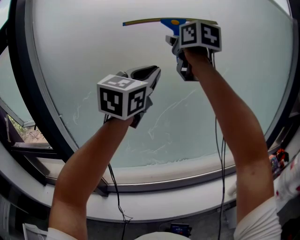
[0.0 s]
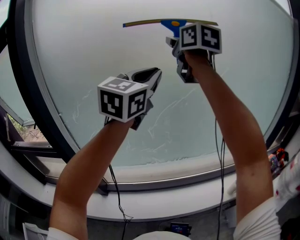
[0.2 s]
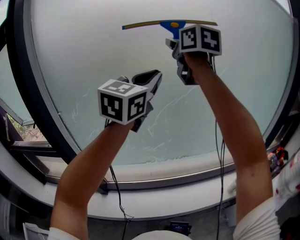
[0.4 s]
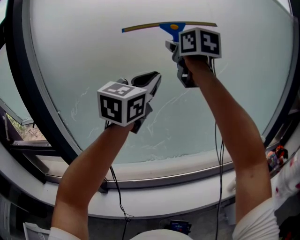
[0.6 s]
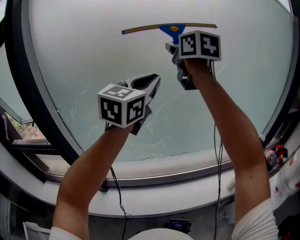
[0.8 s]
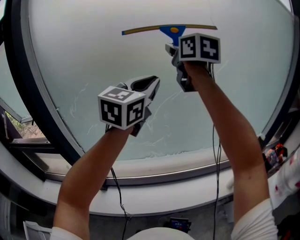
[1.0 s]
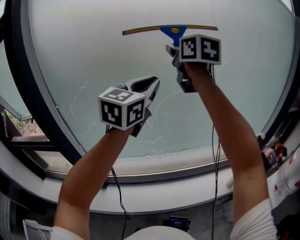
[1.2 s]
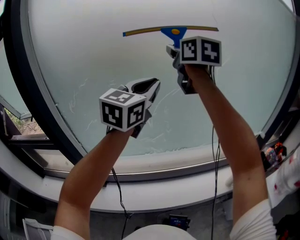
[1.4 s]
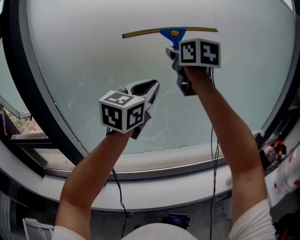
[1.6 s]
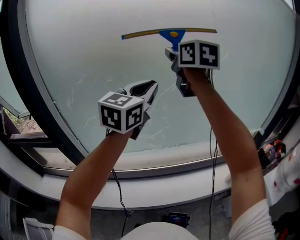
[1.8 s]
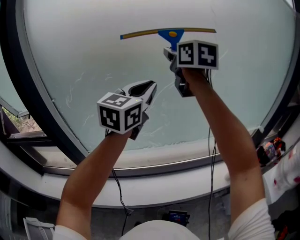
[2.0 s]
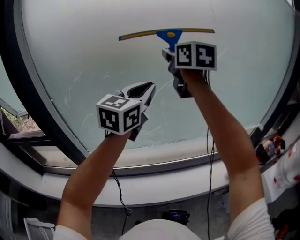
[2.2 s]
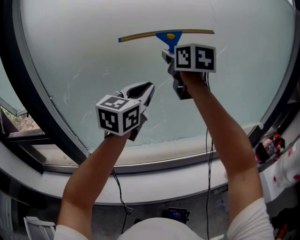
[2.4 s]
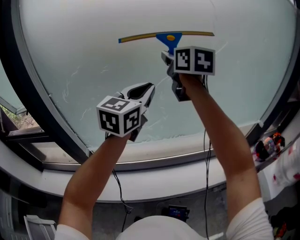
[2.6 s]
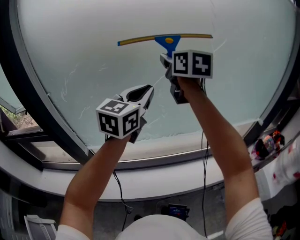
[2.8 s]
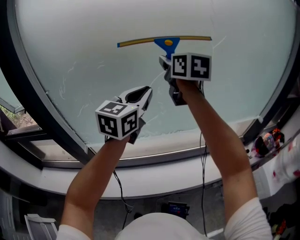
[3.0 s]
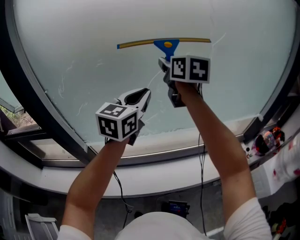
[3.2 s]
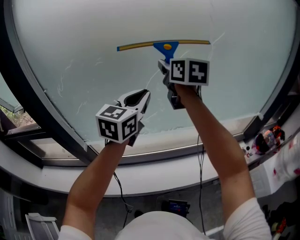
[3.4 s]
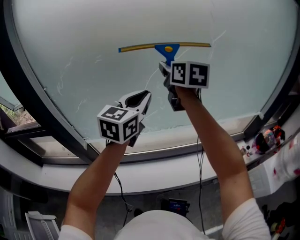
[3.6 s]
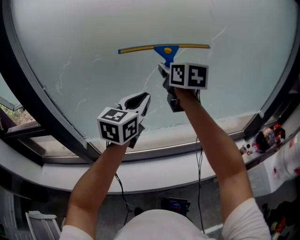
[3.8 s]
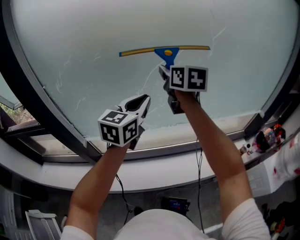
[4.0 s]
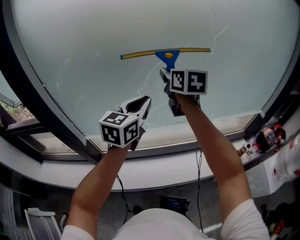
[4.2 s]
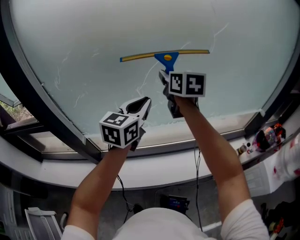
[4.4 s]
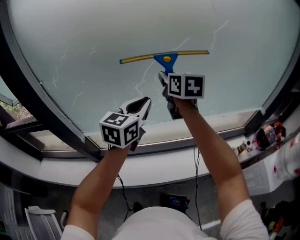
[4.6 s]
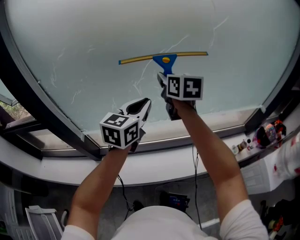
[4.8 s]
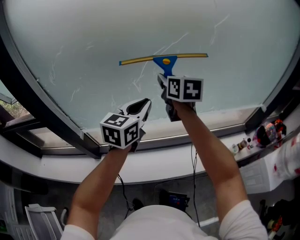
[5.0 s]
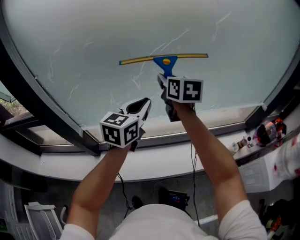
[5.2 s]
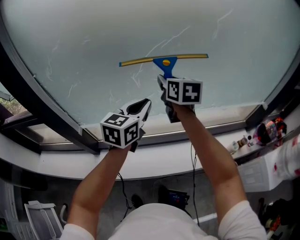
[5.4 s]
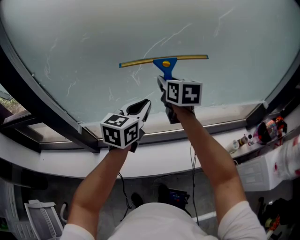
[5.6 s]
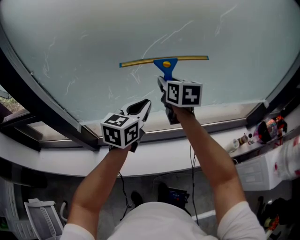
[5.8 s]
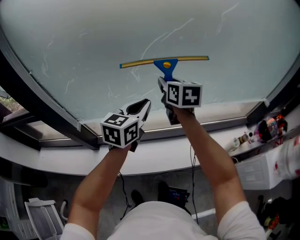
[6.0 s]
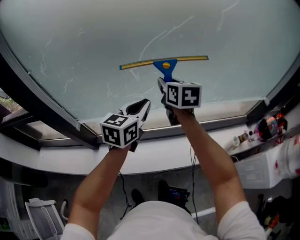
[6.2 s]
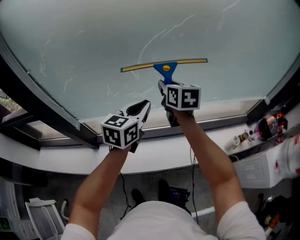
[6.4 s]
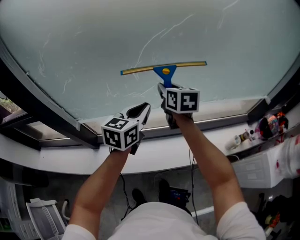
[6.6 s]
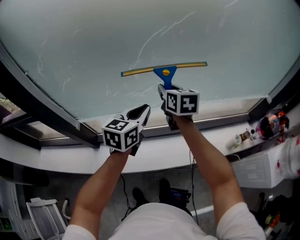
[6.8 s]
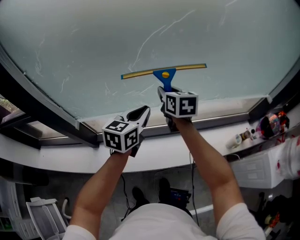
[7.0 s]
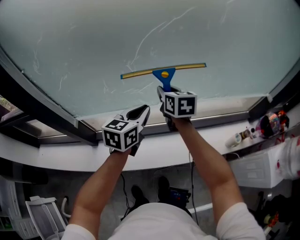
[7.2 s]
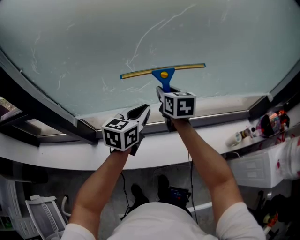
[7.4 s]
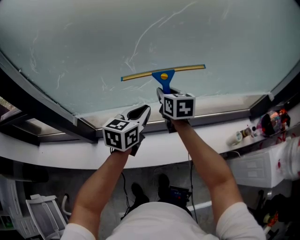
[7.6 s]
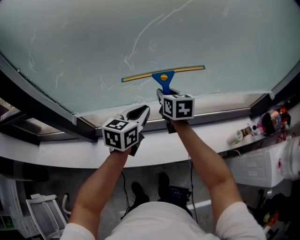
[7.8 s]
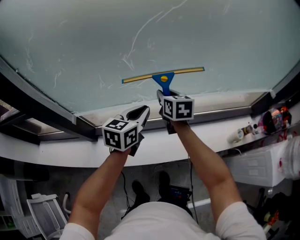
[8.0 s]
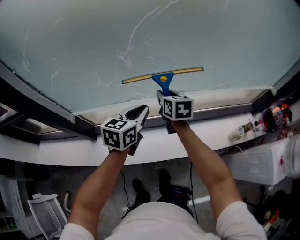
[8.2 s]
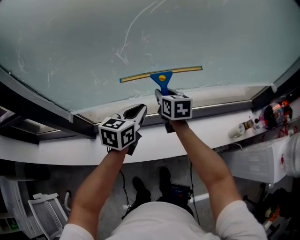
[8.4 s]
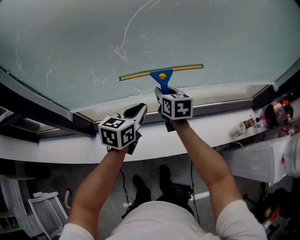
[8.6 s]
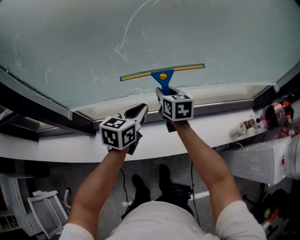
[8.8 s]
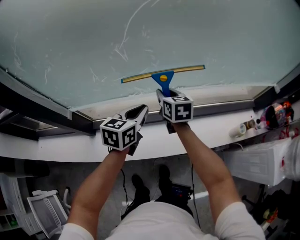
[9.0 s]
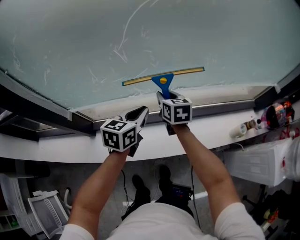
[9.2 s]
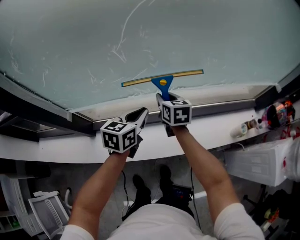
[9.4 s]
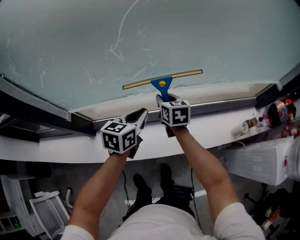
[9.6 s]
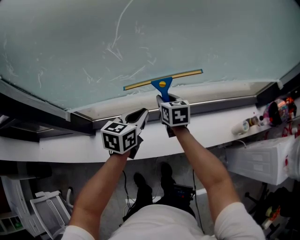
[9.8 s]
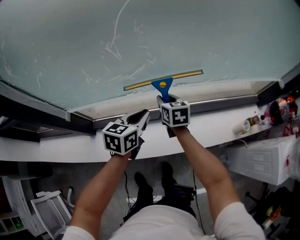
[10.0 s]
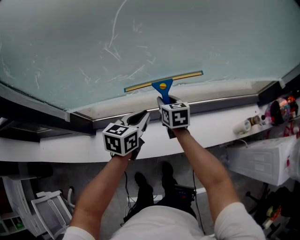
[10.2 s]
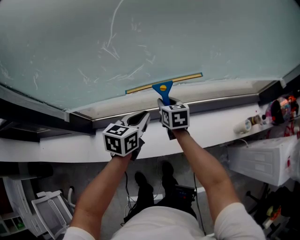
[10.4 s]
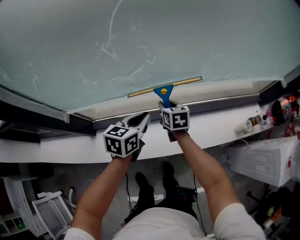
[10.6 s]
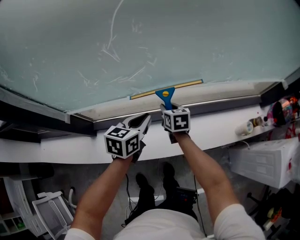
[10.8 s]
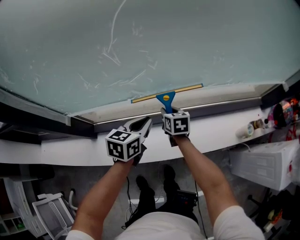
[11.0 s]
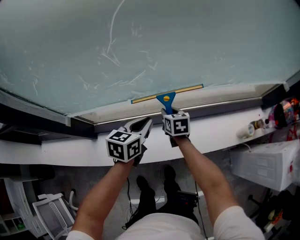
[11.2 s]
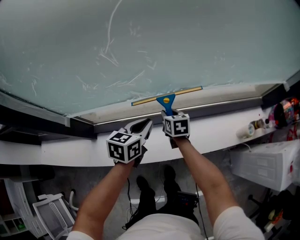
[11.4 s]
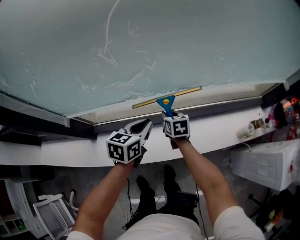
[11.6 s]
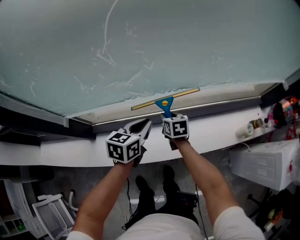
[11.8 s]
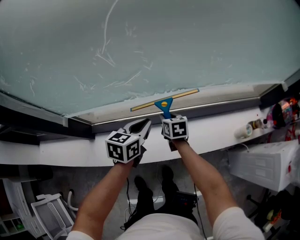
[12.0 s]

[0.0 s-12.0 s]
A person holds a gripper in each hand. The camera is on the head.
0.0 to 1.6 s: Both grippers move downward, some 10 cm.
1.6 to 3.0 s: Both grippers travel together downward, about 10 cm.
3.0 to 4.4 s: The grippers both shift downward by about 10 cm.
4.4 to 6.0 s: Both grippers travel together downward, about 10 cm.
6.0 to 7.6 s: Both grippers move downward, some 10 cm.
7.6 to 9.0 s: The two grippers go approximately 10 cm downward.
9.0 to 10.4 s: The left gripper is displaced downward by some 5 cm. Meanwhile the right gripper heads downward, covering some 10 cm.
10.4 to 12.0 s: The right gripper moves downward, approximately 10 cm.

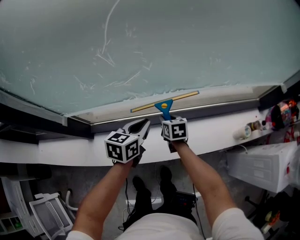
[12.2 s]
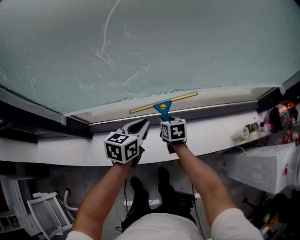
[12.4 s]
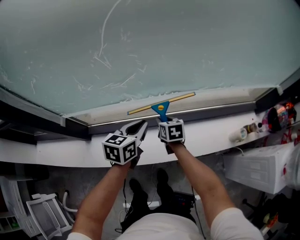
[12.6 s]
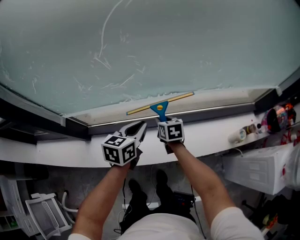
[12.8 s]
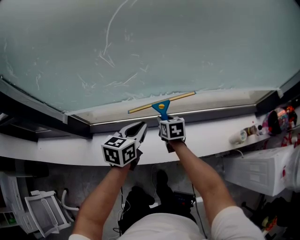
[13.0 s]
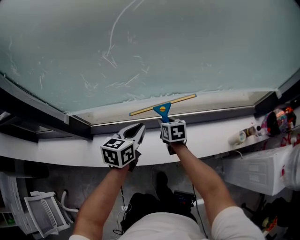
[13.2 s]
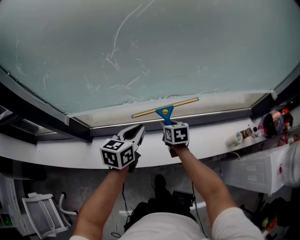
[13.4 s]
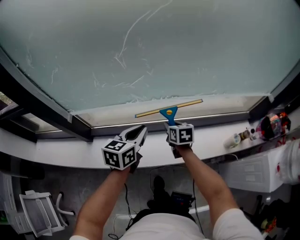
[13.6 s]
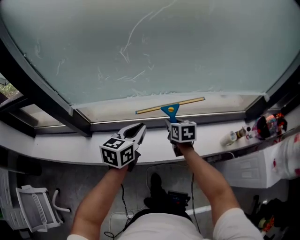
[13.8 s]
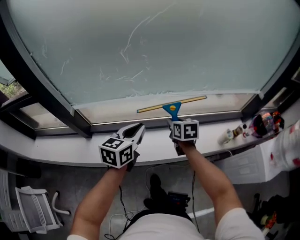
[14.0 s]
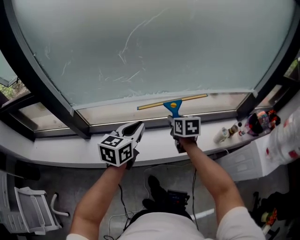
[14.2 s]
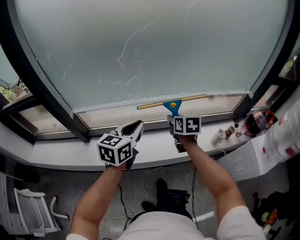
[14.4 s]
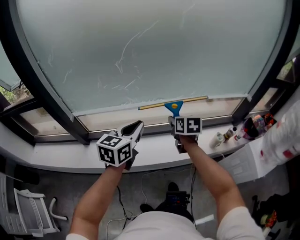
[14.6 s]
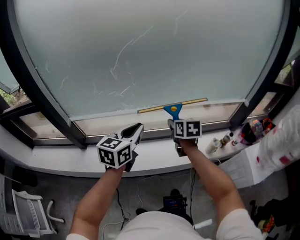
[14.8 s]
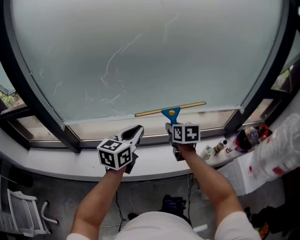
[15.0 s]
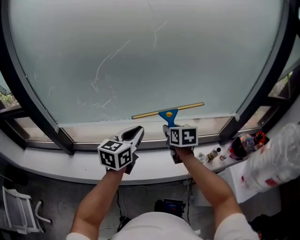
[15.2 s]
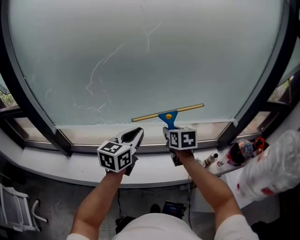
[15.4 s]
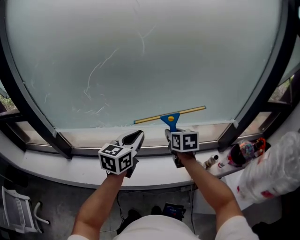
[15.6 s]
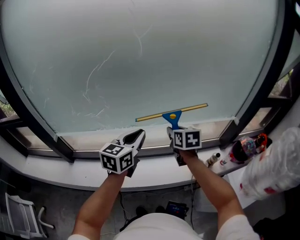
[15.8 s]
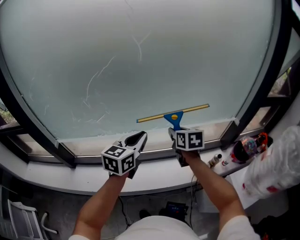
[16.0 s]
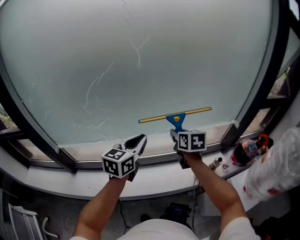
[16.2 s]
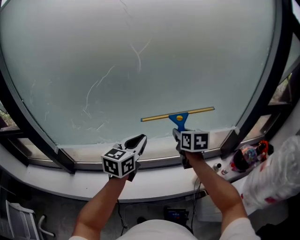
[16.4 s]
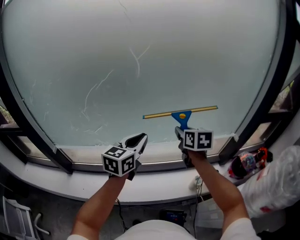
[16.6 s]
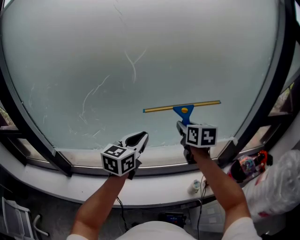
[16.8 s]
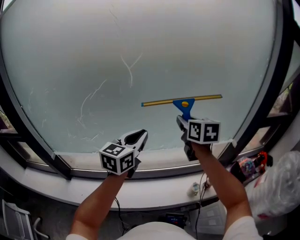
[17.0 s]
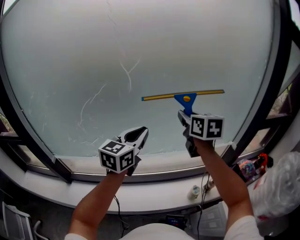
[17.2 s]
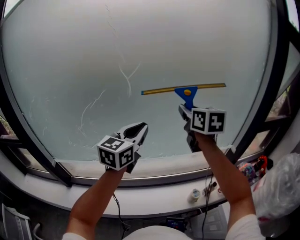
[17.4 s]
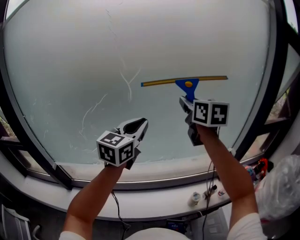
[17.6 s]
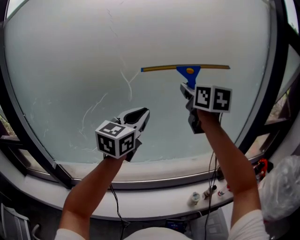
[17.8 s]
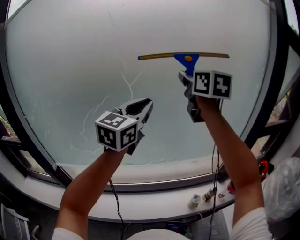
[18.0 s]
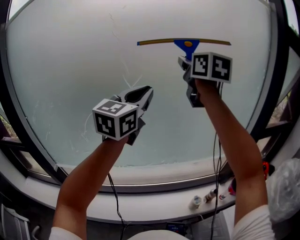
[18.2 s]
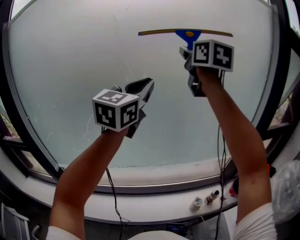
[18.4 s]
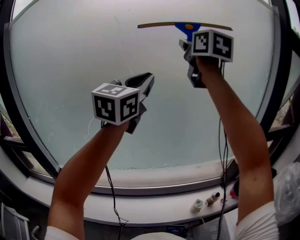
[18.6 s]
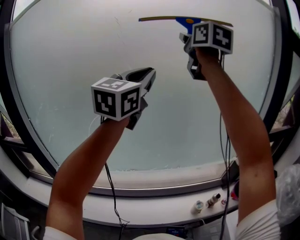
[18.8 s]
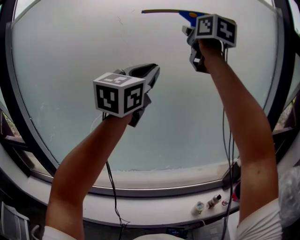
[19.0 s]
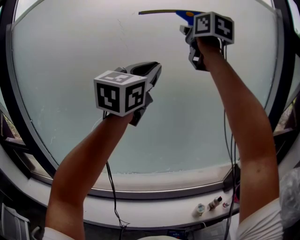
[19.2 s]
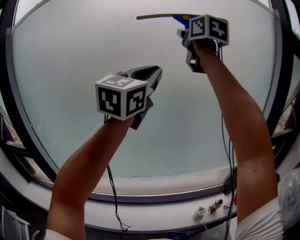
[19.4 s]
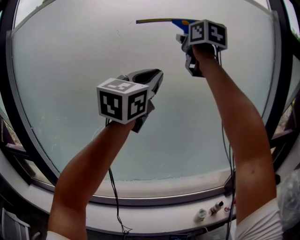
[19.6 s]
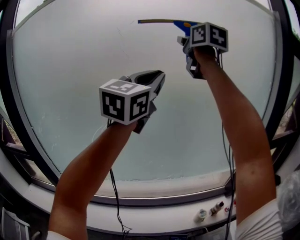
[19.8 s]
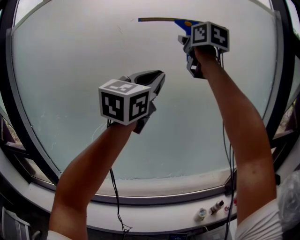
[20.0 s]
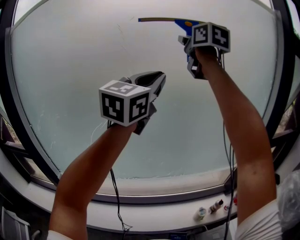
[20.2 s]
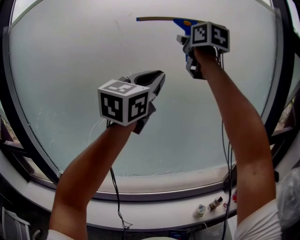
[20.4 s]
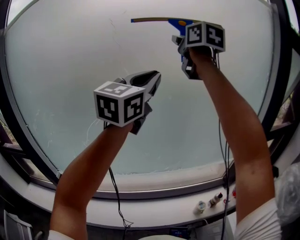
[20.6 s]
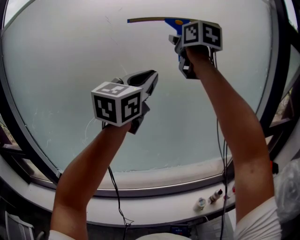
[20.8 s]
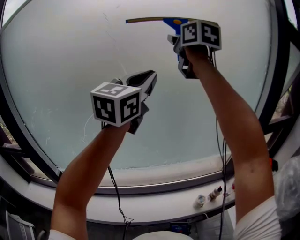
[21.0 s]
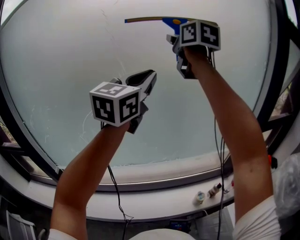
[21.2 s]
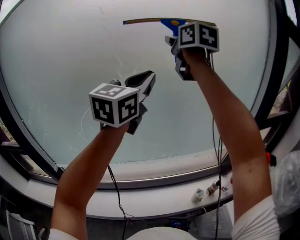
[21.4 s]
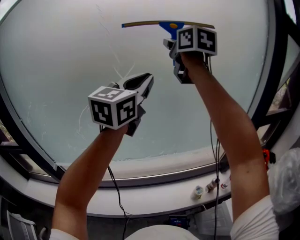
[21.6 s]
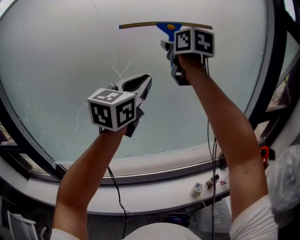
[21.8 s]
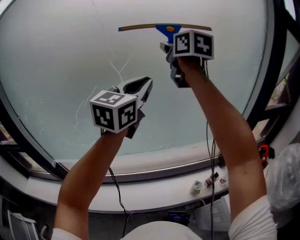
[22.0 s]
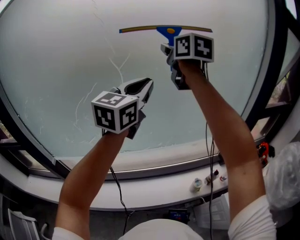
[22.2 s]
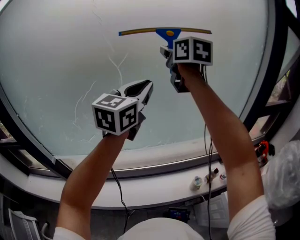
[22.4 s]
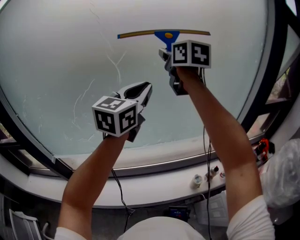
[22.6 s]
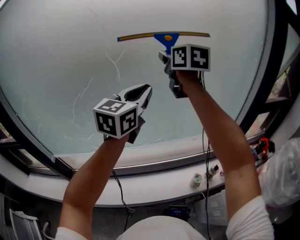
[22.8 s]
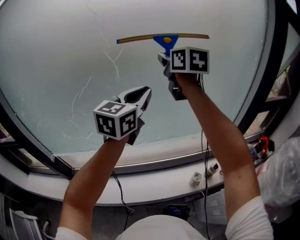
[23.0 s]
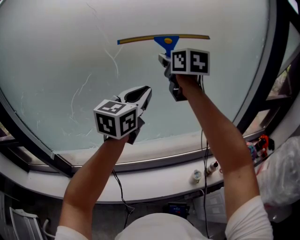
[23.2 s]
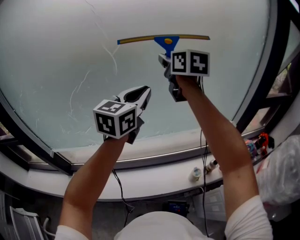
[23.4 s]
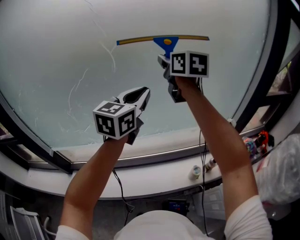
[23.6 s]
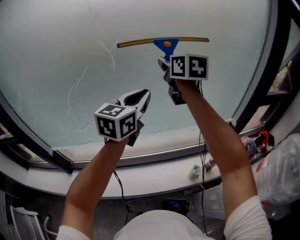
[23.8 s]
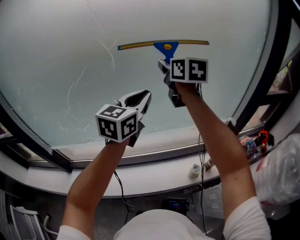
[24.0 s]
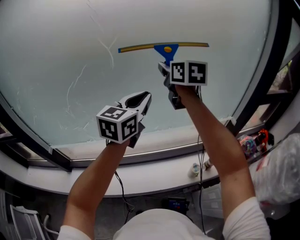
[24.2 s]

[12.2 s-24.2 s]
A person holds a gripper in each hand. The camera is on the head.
12.2 to 13.8 s: The right gripper goes some 15 cm upward, backward and to the right. Meanwhile the left gripper goes about 15 cm backward and upward.
13.8 to 15.2 s: The two grippers go about 25 cm to the right and upward.
15.2 to 16.6 s: The grippers both shift forward, to the right and upward by roughly 15 cm.
16.6 to 18.2 s: The grippers both shift upward by about 35 cm. The left gripper rotates some 30 degrees, while the right gripper points its fingers about 30 degrees further upward.
18.2 to 19.8 s: The left gripper heads upward, covering some 10 cm; the right gripper heads upward and forward, covering some 15 cm.
19.8 to 21.2 s: Both grippers travel together downward, about 5 cm.
21.2 to 22.6 s: The two grippers go approximately 15 cm downward.
22.6 to 24.2 s: The grippers both shift downward by approximately 10 cm.
